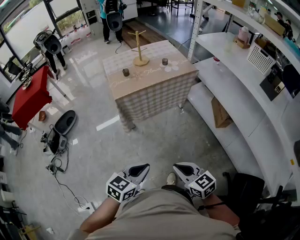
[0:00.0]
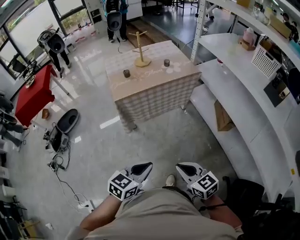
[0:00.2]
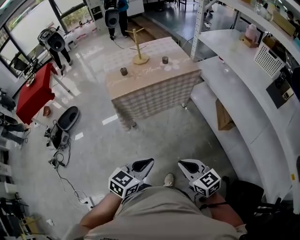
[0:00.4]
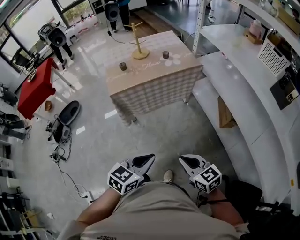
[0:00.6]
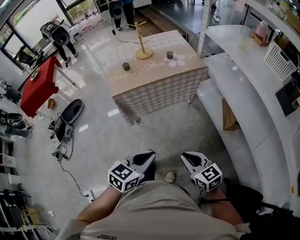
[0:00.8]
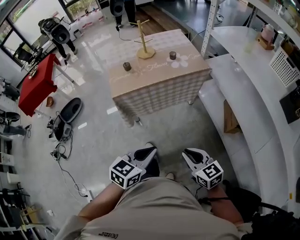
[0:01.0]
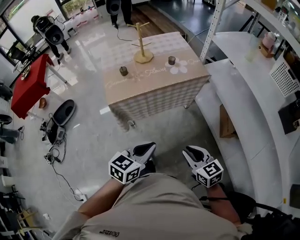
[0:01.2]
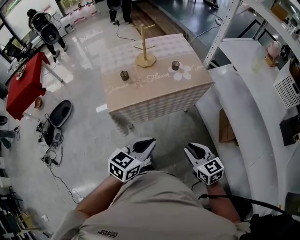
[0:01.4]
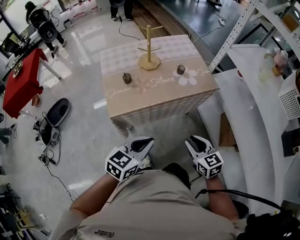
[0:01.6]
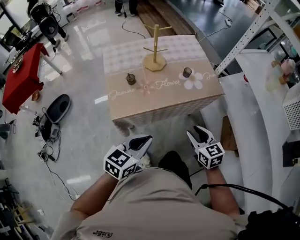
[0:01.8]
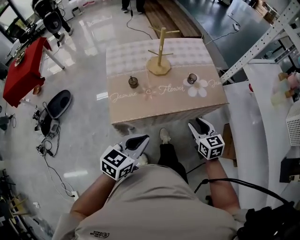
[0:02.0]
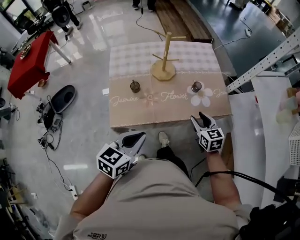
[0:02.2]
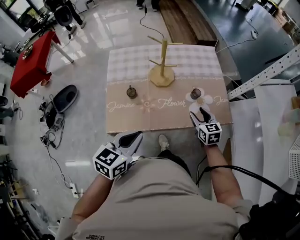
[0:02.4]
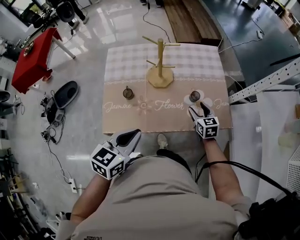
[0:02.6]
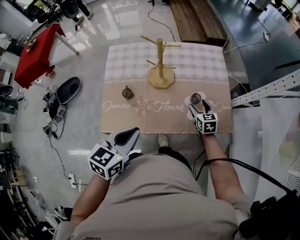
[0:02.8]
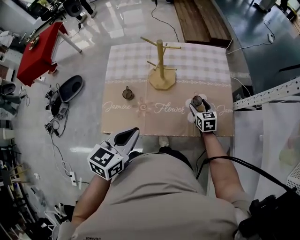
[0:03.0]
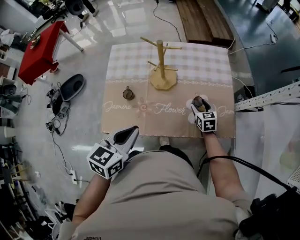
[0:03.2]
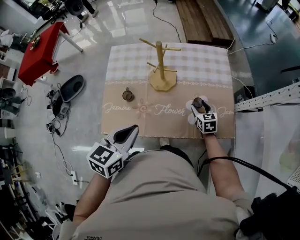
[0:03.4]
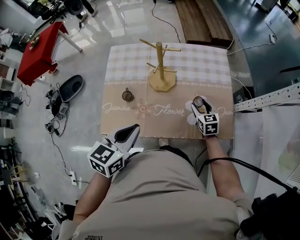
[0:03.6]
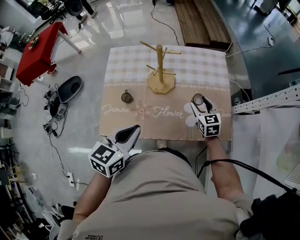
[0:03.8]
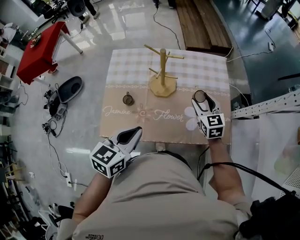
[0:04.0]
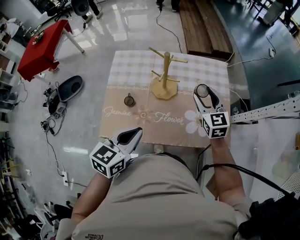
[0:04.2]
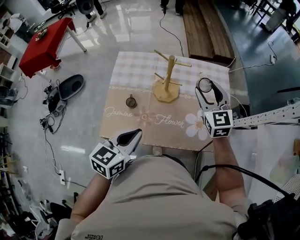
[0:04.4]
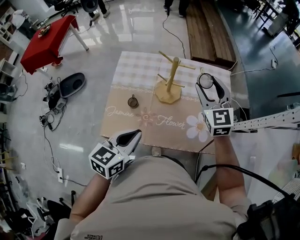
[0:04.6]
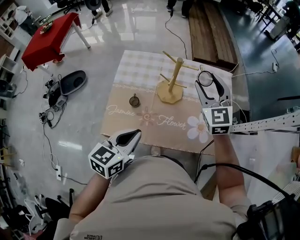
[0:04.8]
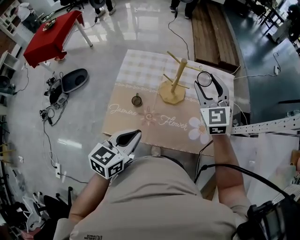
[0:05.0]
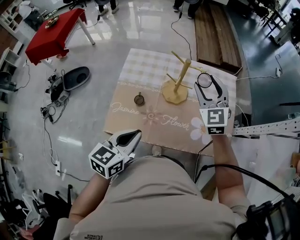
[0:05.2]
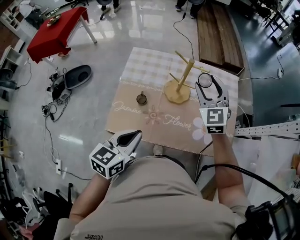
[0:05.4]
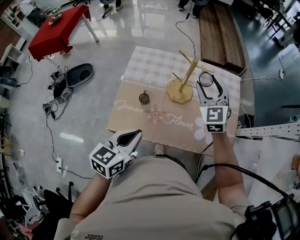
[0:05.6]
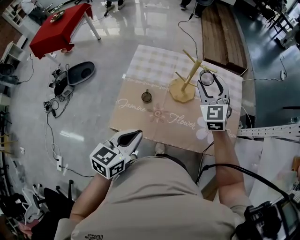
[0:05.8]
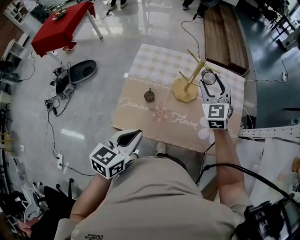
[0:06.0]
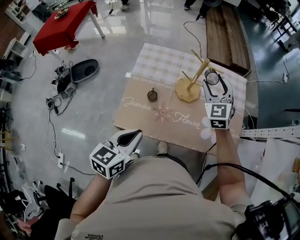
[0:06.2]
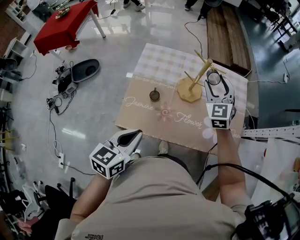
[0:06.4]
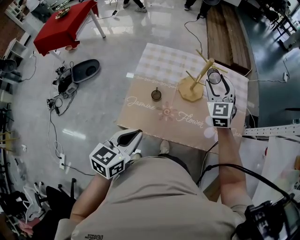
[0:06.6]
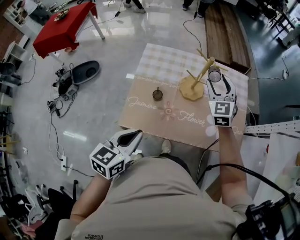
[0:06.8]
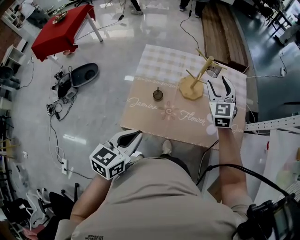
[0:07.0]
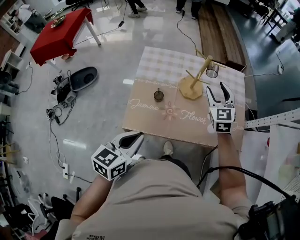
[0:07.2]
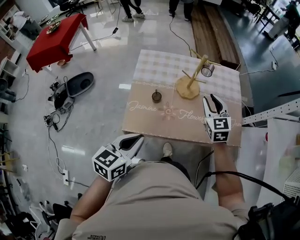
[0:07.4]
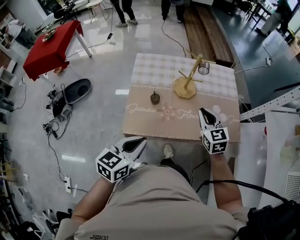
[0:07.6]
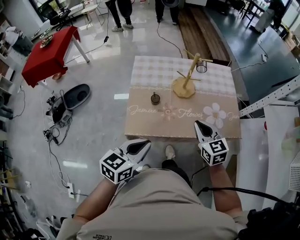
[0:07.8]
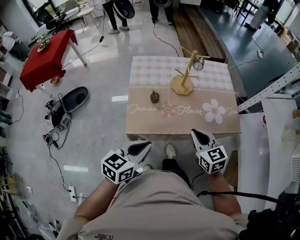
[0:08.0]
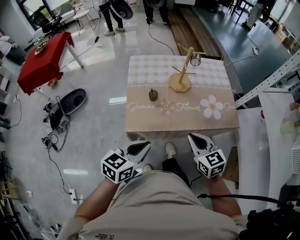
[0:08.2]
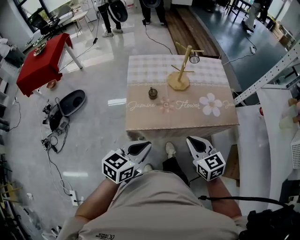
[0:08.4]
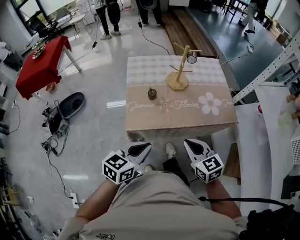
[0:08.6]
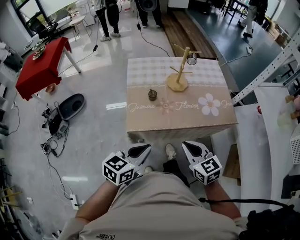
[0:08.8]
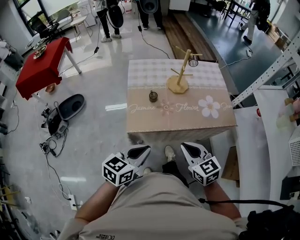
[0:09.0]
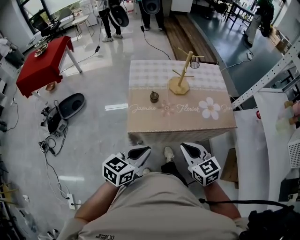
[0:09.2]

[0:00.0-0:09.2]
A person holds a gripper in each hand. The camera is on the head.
0:00.0 to 0:01.6: The grippers both shift forward by approximately 40 cm.
0:01.6 to 0:03.0: The right gripper moves forward, roughly 50 cm, and opens. The left gripper goes about 25 cm forward, and rotates some 30 degrees.
0:03.0 to 0:04.6: The right gripper goes roughly 30 cm upward, and rotates some 40 degrees.
0:04.6 to 0:06.2: The two grippers go some 5 cm to the left.
0:06.2 to 0:07.6: The right gripper travels backward by about 20 cm, turns by some 20 degrees, and closes; the left gripper goes roughly 5 cm backward.
0:07.6 to 0:09.2: The left gripper goes some 10 cm backward. The right gripper is displaced backward by roughly 25 cm.

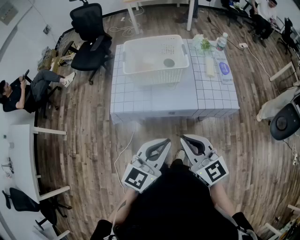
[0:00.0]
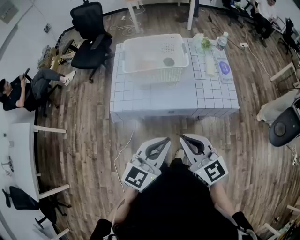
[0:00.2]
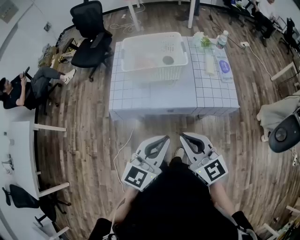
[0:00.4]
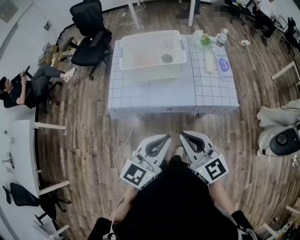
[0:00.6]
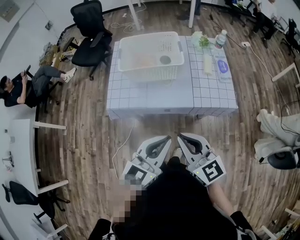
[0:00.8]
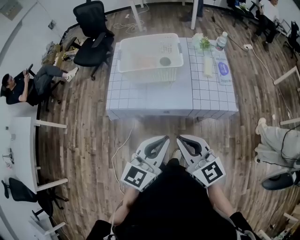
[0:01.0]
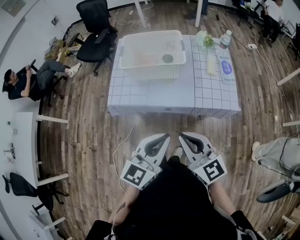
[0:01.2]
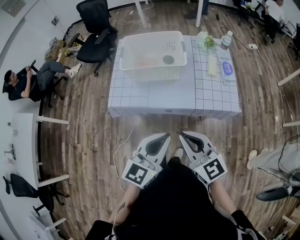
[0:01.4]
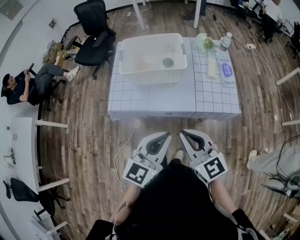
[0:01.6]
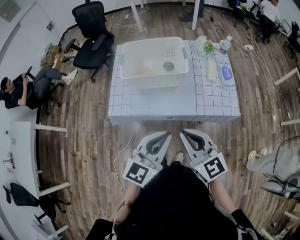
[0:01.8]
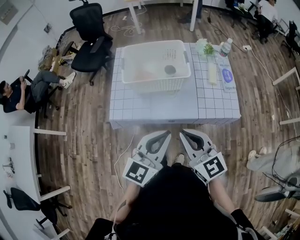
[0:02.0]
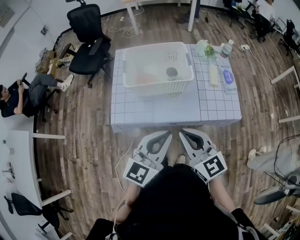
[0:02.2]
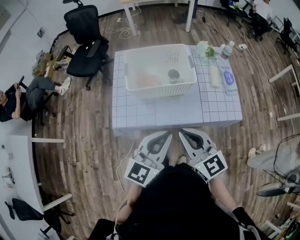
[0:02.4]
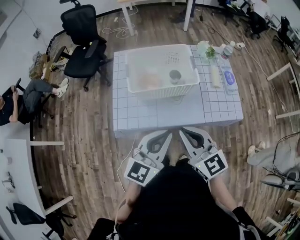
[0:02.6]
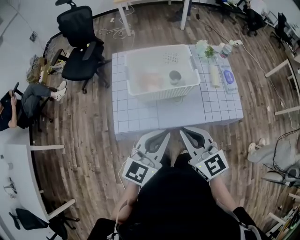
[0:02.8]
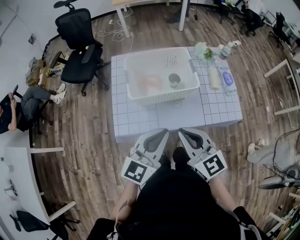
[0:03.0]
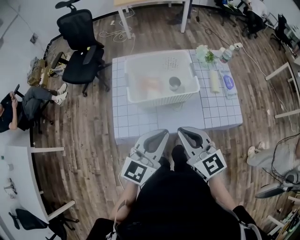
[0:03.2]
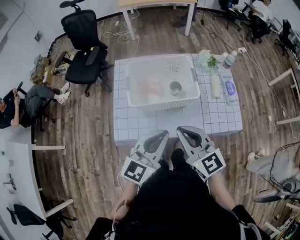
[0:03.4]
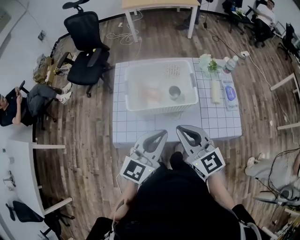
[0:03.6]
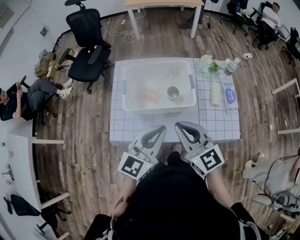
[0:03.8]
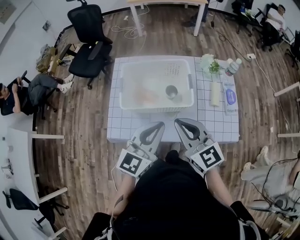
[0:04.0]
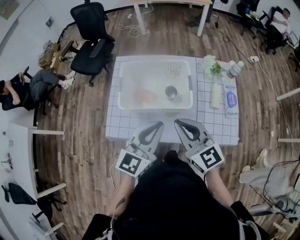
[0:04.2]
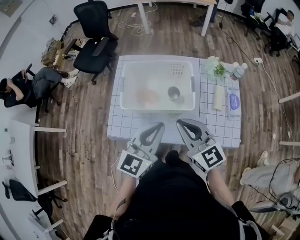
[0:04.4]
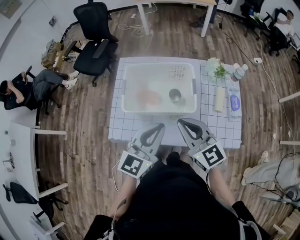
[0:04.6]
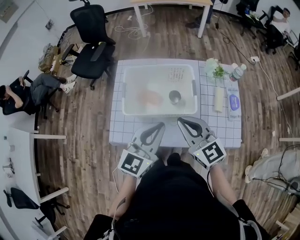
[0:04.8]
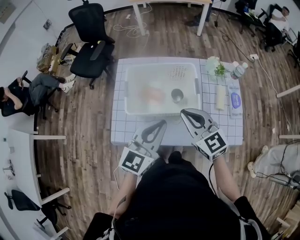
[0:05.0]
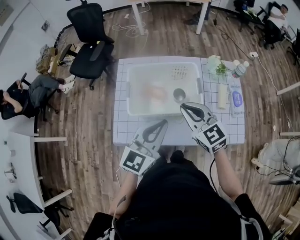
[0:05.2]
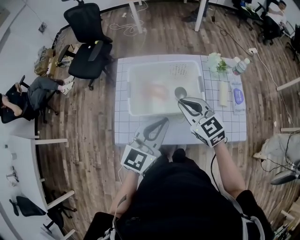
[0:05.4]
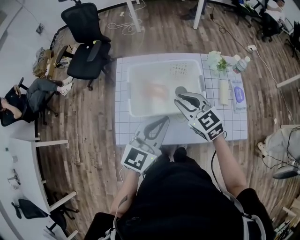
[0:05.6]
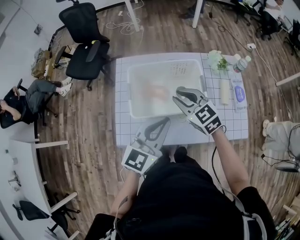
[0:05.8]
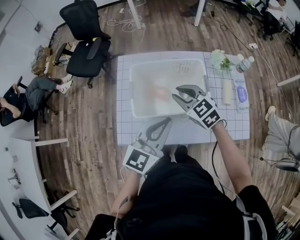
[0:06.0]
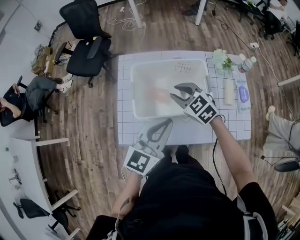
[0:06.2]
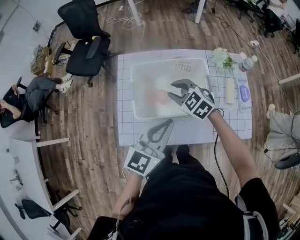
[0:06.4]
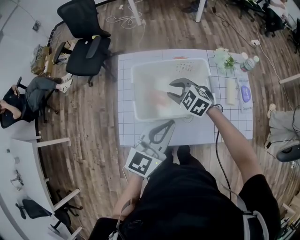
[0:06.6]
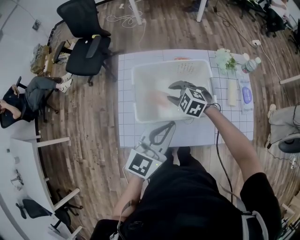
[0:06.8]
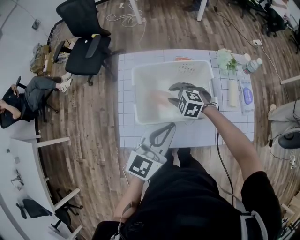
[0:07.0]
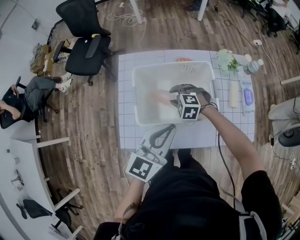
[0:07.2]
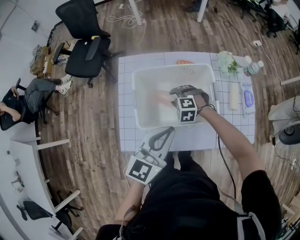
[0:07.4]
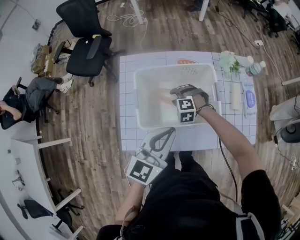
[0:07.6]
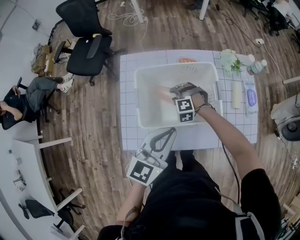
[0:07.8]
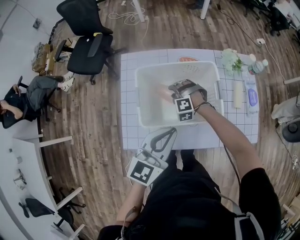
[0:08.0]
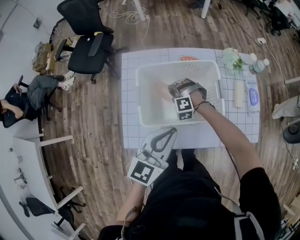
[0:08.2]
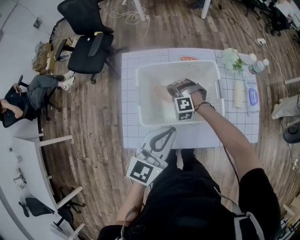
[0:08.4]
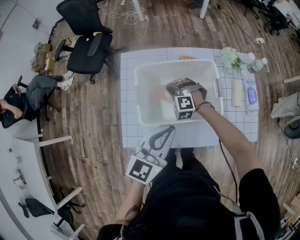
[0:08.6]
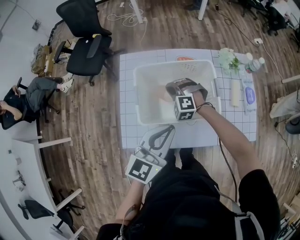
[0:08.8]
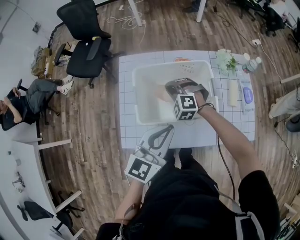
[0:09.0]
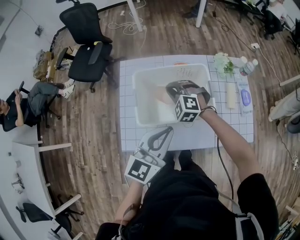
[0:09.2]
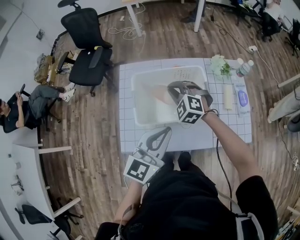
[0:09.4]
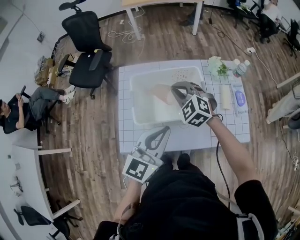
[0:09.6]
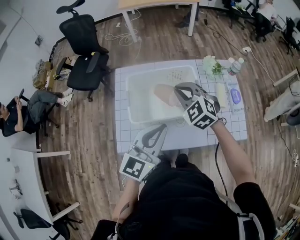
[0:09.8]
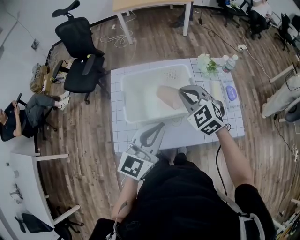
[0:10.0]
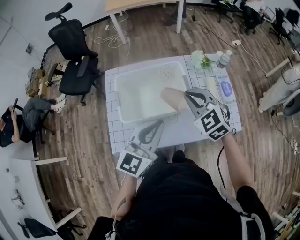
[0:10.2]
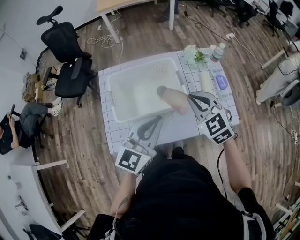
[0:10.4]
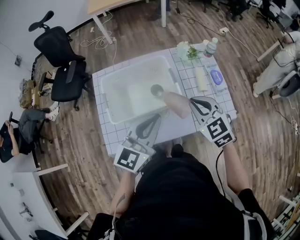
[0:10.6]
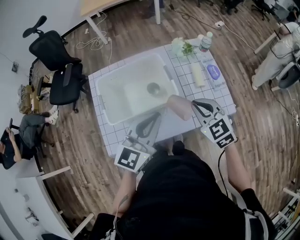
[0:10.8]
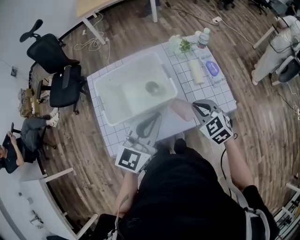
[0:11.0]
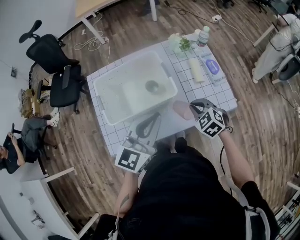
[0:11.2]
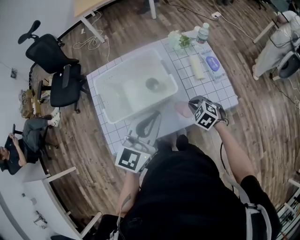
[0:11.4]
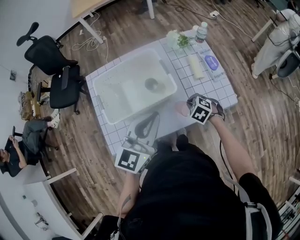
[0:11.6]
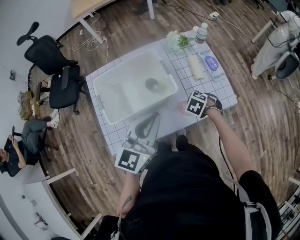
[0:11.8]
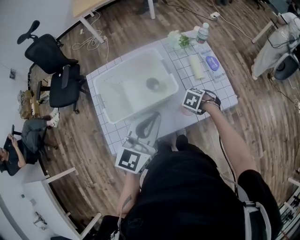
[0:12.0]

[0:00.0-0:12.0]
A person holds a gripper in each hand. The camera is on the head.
0:00.0 to 0:01.6: The left gripper ends up some 5 cm from where it was. The right gripper shifts by roughly 5 cm.
0:01.6 to 0:03.0: The two grippers go about 15 cm forward and to the left.
0:03.0 to 0:04.4: The grippers both shift forward and to the right by approximately 15 cm.
0:04.4 to 0:06.0: The left gripper is displaced forward and to the left by about 10 cm; the right gripper travels forward, downward and to the left by some 20 cm, swivels approximately 30 degrees, and opens its fingers.
0:06.0 to 0:07.6: The right gripper moves downward, approximately 20 cm, and rotates around the line of its fingers by some 50 degrees, counterclockwise from behind.
0:07.6 to 0:09.0: The right gripper moves upward, about 10 cm, and closes.
0:09.0 to 0:10.4: The left gripper travels to the right by approximately 5 cm. Meanwhile the right gripper heads to the right, upward and backward, covering roughly 30 cm, and rolls clockwise, seen from behind, by approximately 40 degrees.
0:10.4 to 0:12.0: The right gripper is displaced downward by about 25 cm, and tilts its fingers some 50 degrees downward.

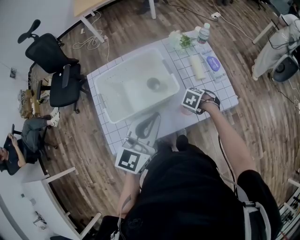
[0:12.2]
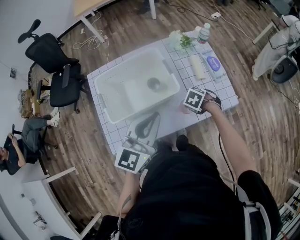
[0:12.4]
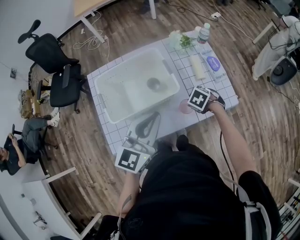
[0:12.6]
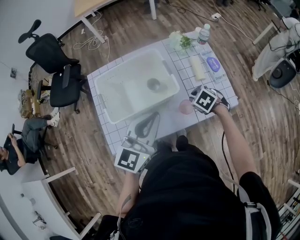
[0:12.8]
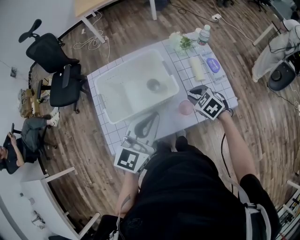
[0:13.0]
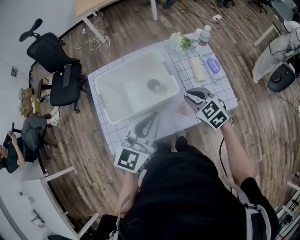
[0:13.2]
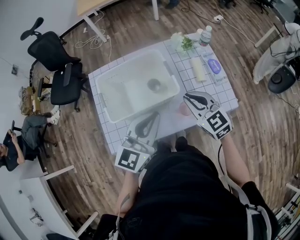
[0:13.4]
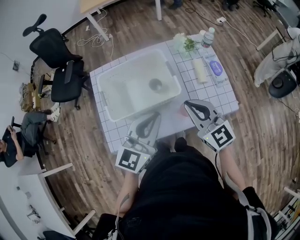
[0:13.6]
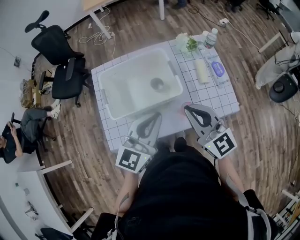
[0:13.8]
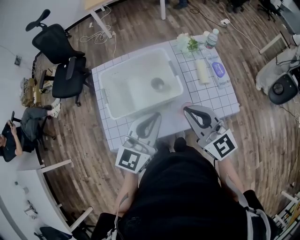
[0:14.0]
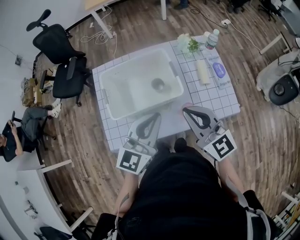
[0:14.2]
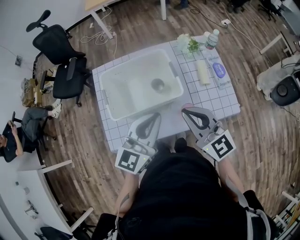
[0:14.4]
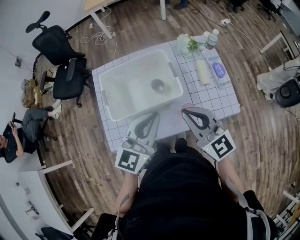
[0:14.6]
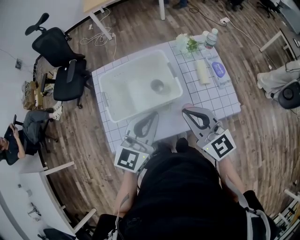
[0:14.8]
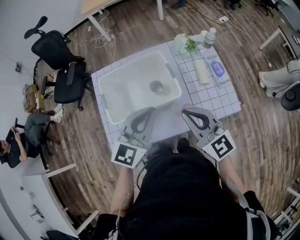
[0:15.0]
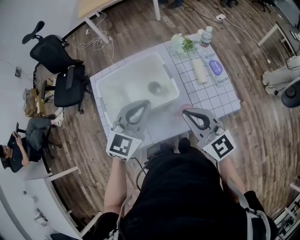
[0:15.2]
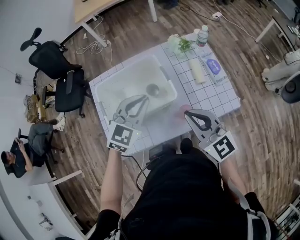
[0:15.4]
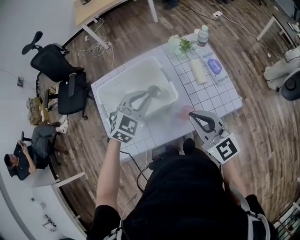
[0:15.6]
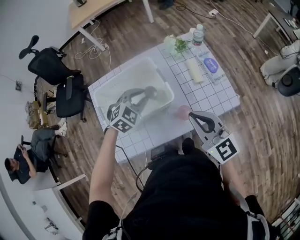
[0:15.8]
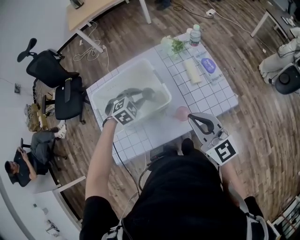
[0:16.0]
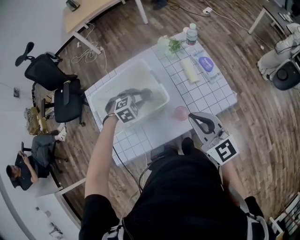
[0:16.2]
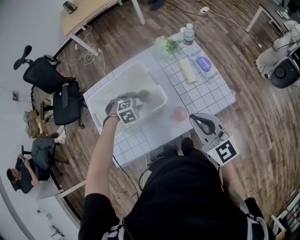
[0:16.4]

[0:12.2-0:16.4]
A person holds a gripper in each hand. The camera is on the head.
0:12.2 to 0:13.6: The right gripper heads upward, covering about 25 cm, and points its fingers some 70 degrees further upward.
0:13.6 to 0:15.0: The grippers make only small movements.
0:15.0 to 0:16.4: The left gripper travels downward and forward by approximately 25 cm, tilts its fingers about 60 degrees downward, and opens its fingers, while the right gripper goes roughly 10 cm to the right.
